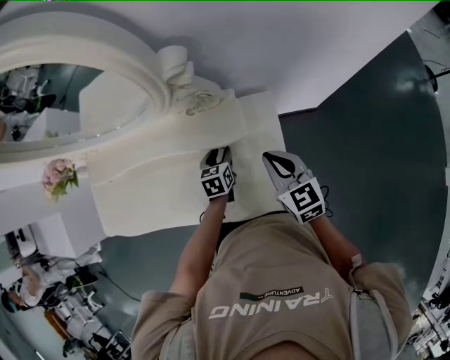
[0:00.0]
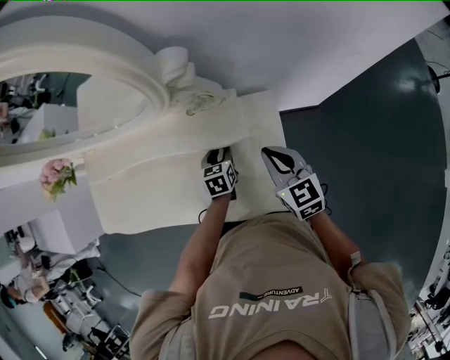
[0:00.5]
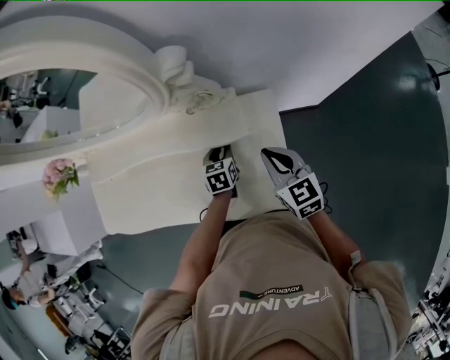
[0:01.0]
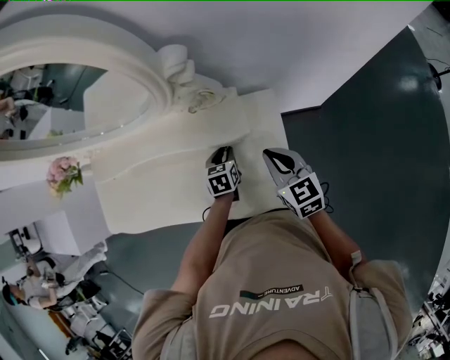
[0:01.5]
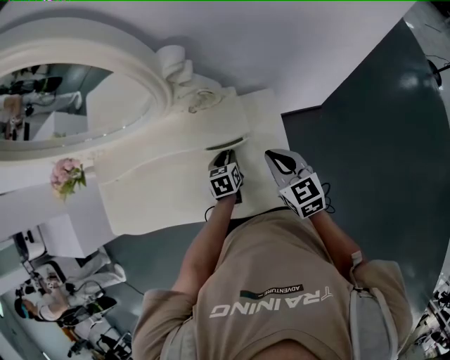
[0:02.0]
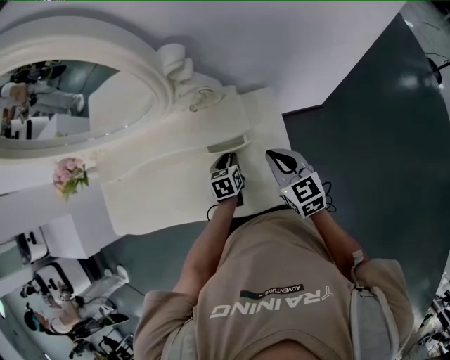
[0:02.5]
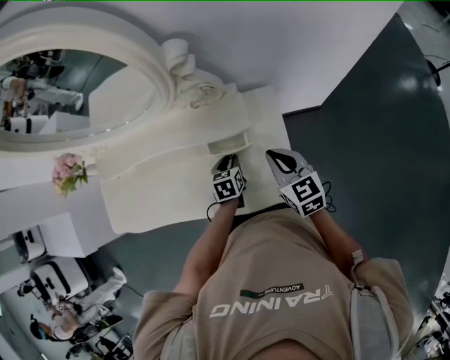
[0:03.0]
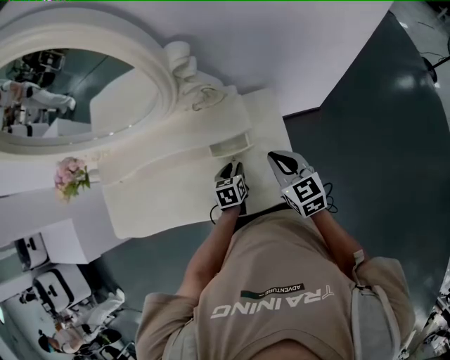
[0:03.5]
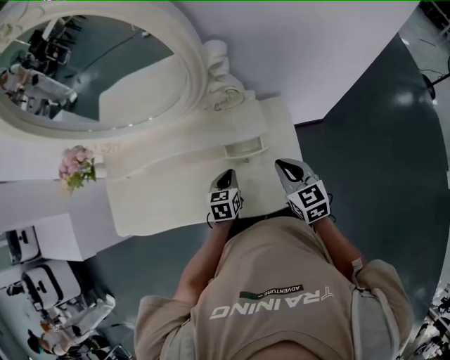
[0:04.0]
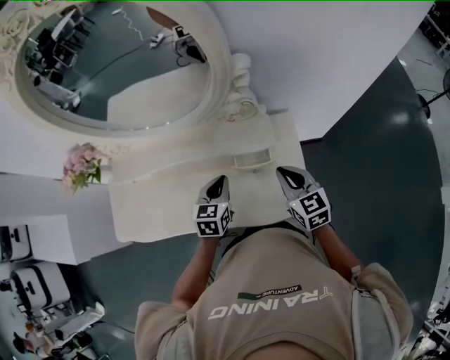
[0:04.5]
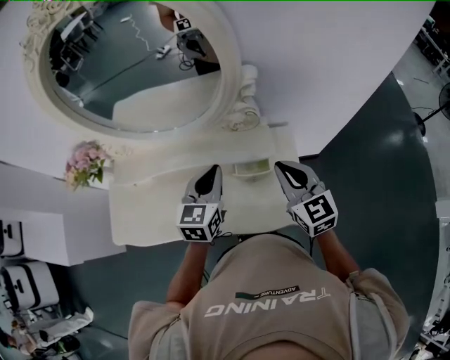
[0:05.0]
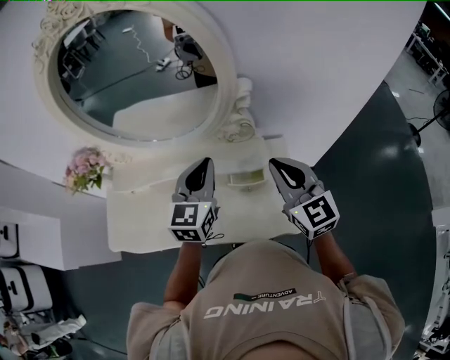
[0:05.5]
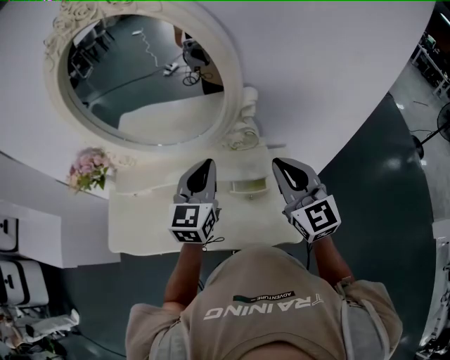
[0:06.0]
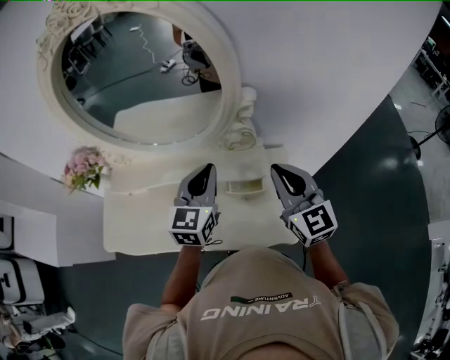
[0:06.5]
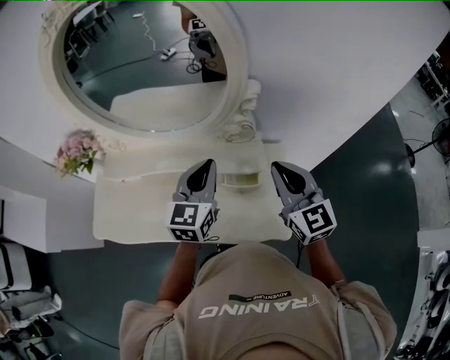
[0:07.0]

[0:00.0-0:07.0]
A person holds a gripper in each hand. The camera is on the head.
0:00.0 to 0:02.0: The grippers make only small movements.
0:02.0 to 0:03.5: The left gripper is displaced backward by approximately 5 cm.
0:03.5 to 0:05.0: The left gripper moves upward, about 30 cm, tips its fingers upward by about 30 degrees, and closes its fingers. The right gripper travels upward and to the left by roughly 15 cm.
0:05.0 to 0:07.0: The right gripper shifts about 5 cm upward.

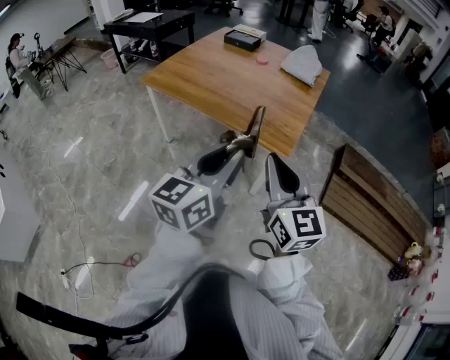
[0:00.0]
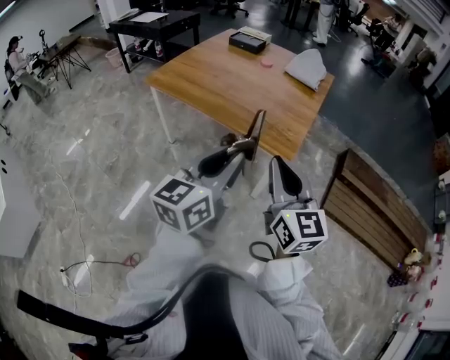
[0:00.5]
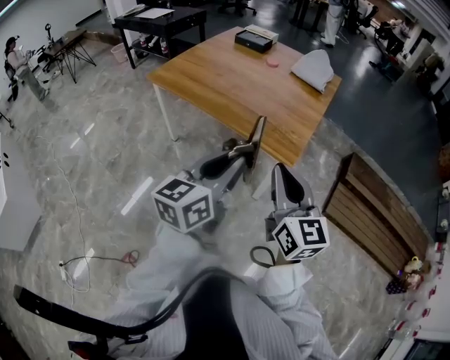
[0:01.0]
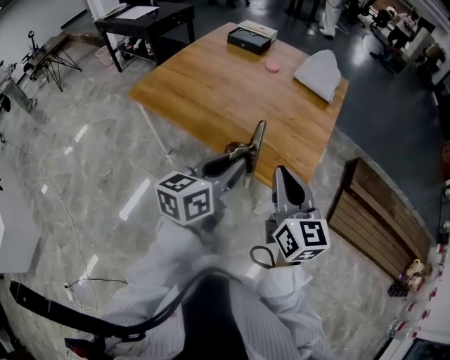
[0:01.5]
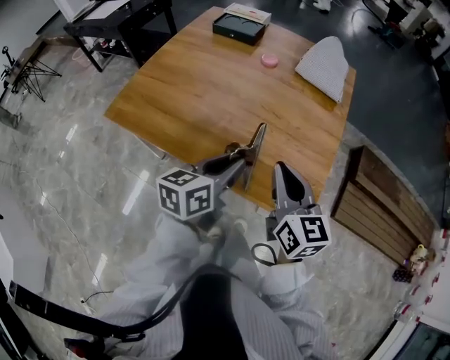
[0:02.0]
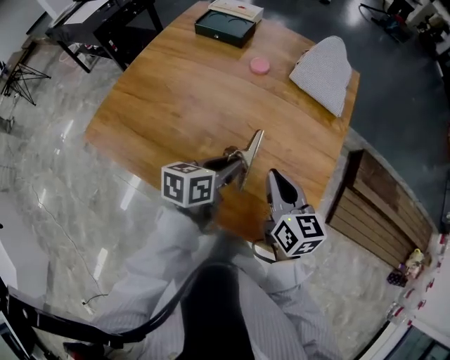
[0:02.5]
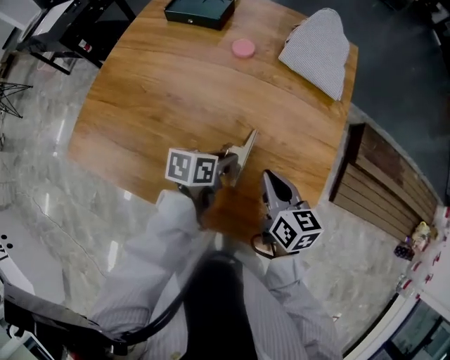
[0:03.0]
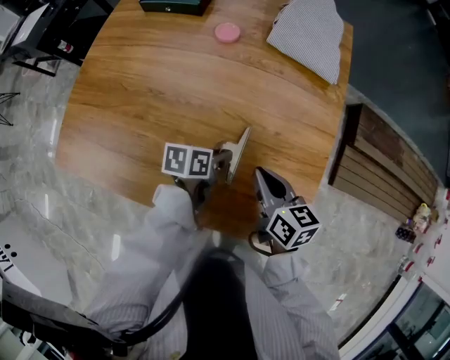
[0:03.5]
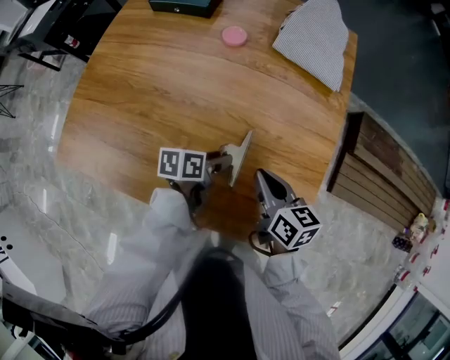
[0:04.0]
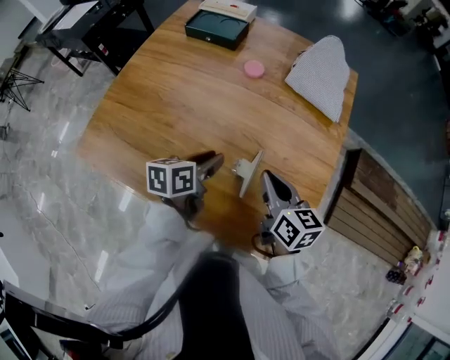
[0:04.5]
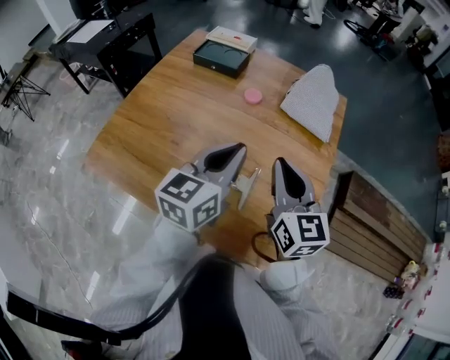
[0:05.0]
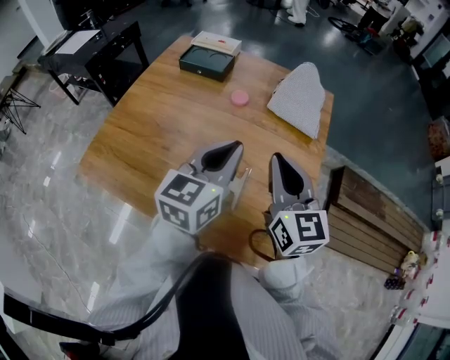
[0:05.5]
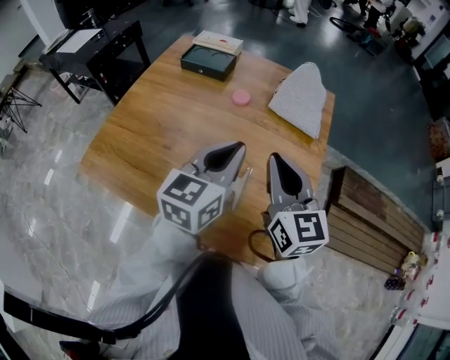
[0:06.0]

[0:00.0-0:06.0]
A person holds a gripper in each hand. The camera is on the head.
0:00.0 to 0:02.0: The left gripper travels forward and downward by some 40 cm, and rotates approximately 30 degrees. Meanwhile the right gripper shifts about 35 cm forward.
0:02.0 to 0:04.0: Both grippers travel together downward and forward, some 25 cm. The right gripper turns by roughly 30 degrees. The left gripper swivels some 40 degrees, and opens up.
0:04.0 to 0:06.0: The grippers both shift upward by roughly 30 cm. The left gripper points its fingers approximately 30 degrees further upward, and closes up. Meanwhile the right gripper rotates roughly 40 degrees.

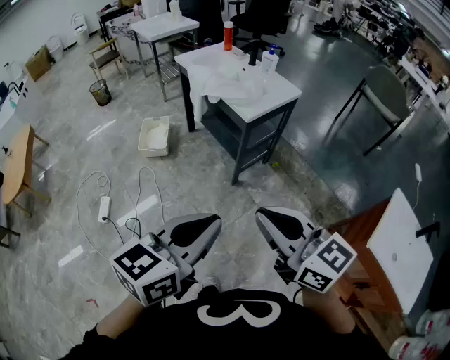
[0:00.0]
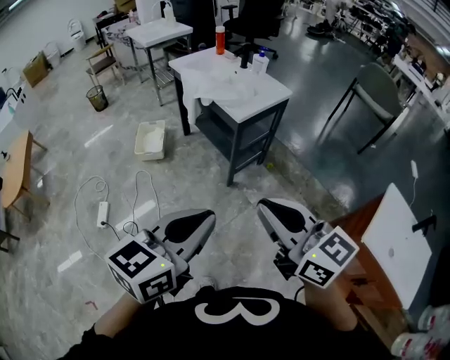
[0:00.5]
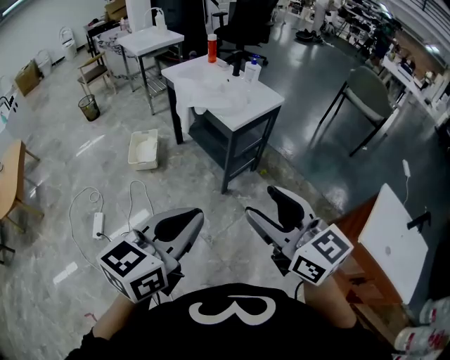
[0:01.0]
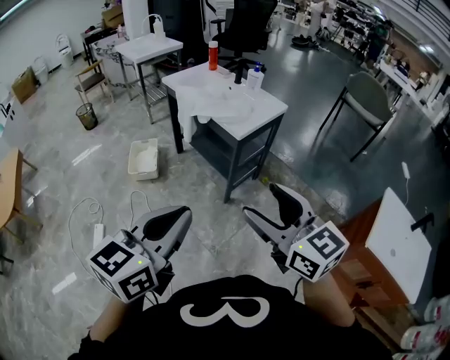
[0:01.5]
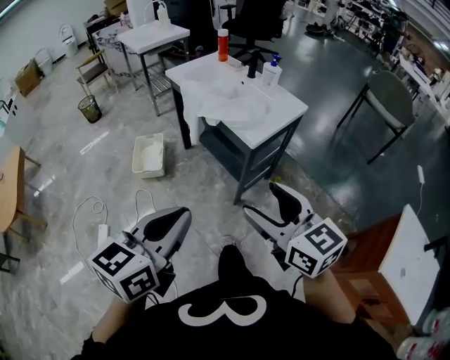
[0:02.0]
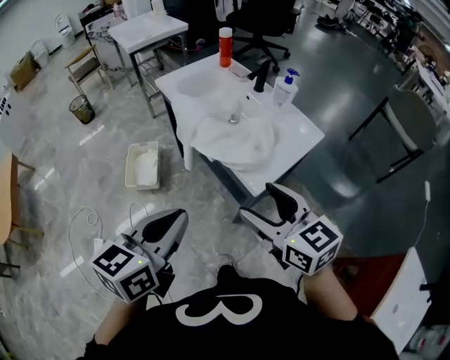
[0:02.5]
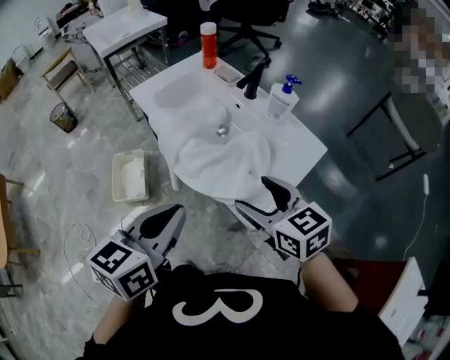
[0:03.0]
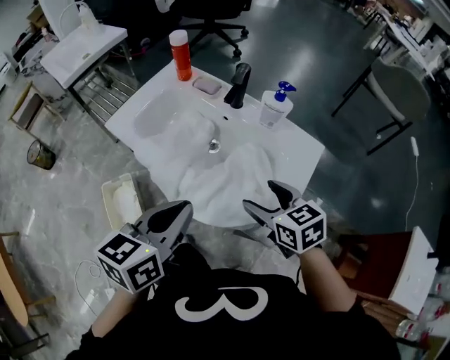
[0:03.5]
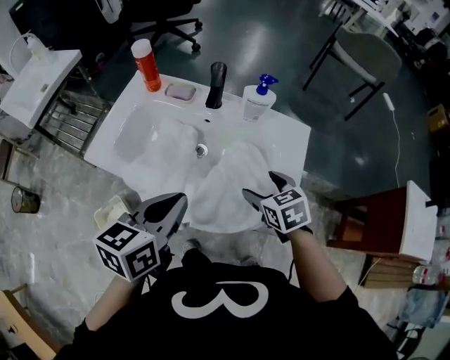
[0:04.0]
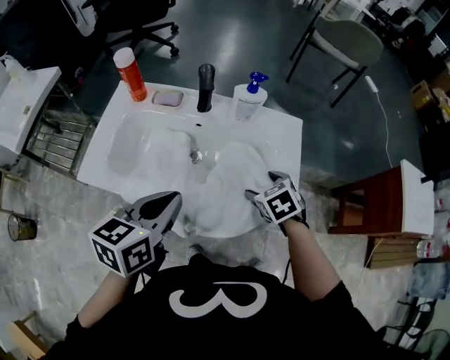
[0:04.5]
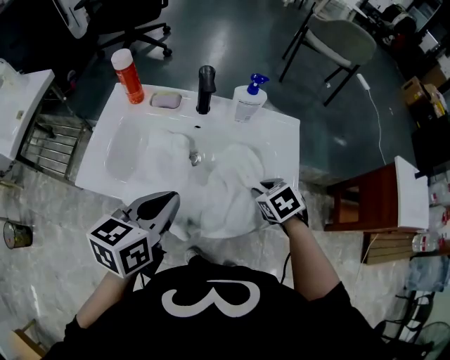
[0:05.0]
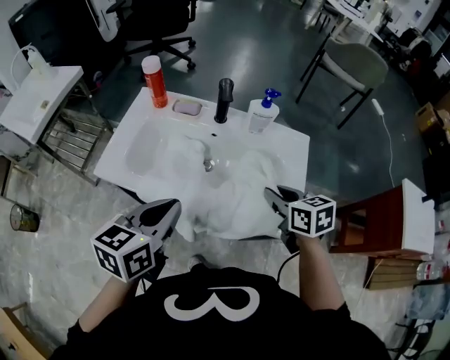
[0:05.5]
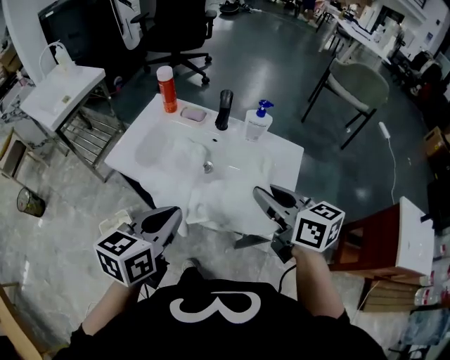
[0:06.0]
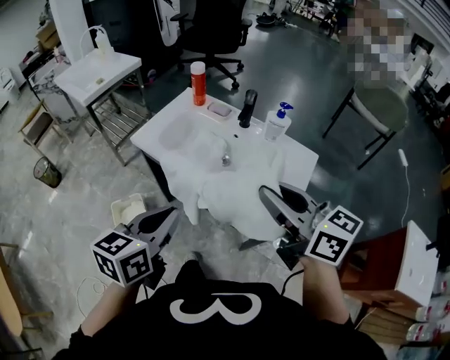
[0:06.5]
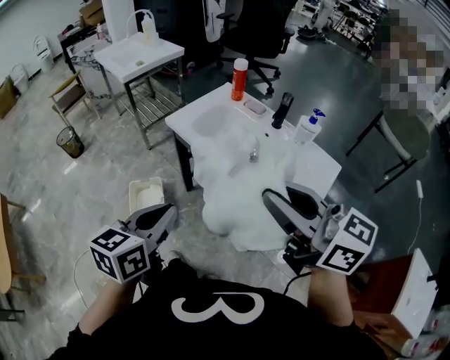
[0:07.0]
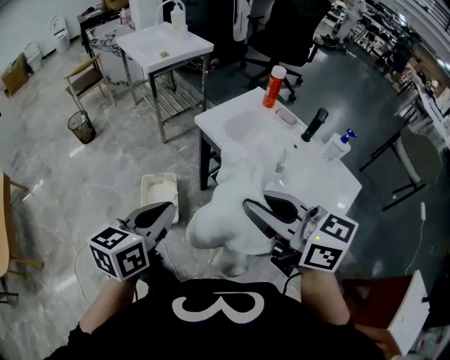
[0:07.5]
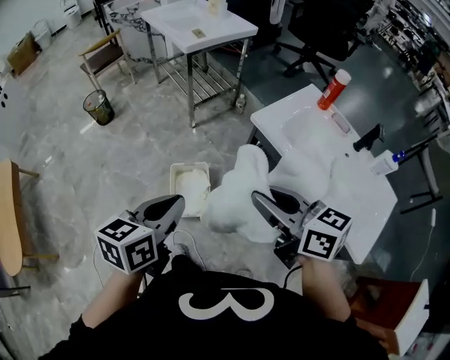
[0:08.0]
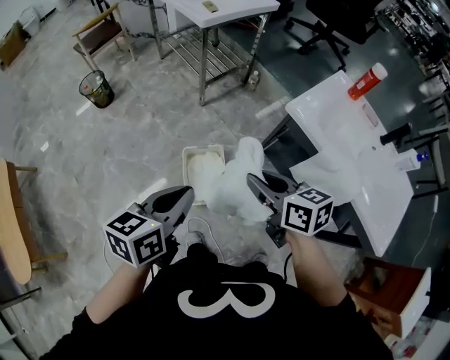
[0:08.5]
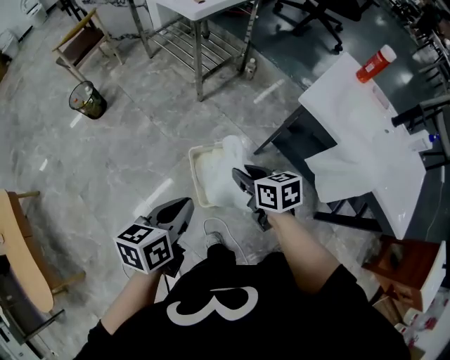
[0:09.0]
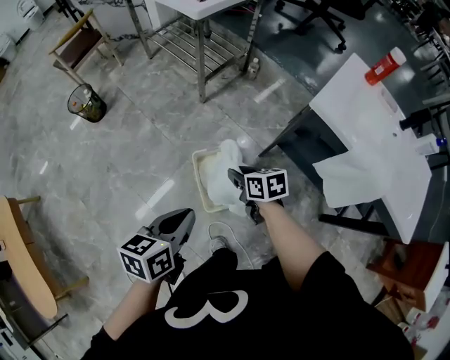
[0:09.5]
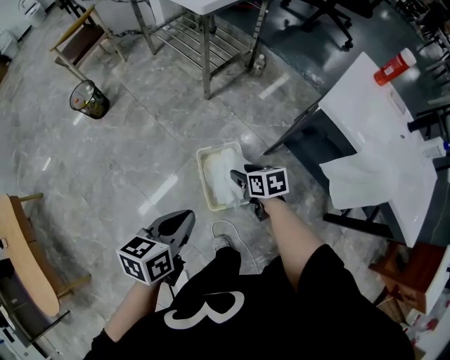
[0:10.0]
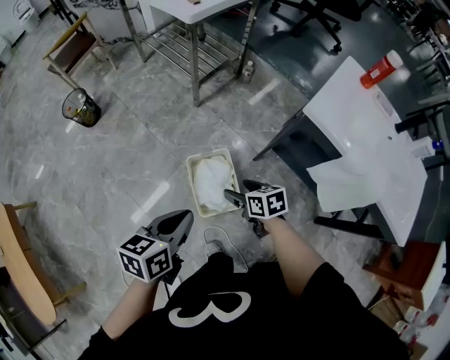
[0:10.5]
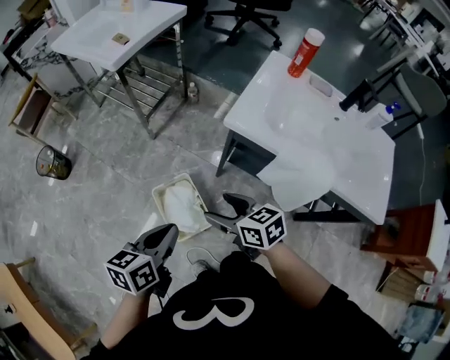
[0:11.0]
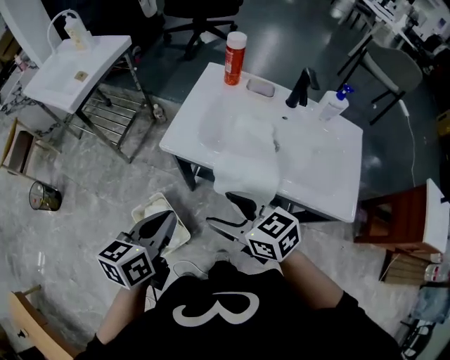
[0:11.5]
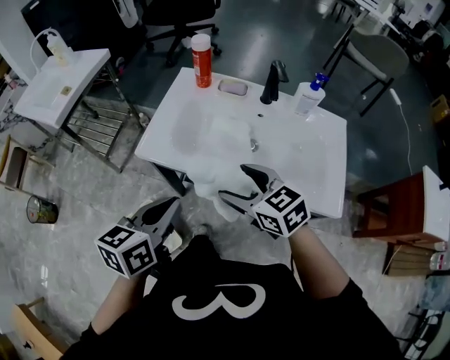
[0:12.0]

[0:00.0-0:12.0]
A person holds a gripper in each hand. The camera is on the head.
0:00.0 to 0:02.0: The left gripper heads forward and to the left, covering approximately 20 cm. The right gripper moves forward, some 20 cm, and opens its fingers.
0:02.0 to 0:04.0: Both grippers are carried roughly 60 cm. The left gripper swivels some 30 degrees; the right gripper tips its fingers downward by about 40 degrees.
0:04.0 to 0:06.0: The left gripper goes some 10 cm backward; the right gripper is displaced upward by about 20 cm, angles its fingers upward, by about 30 degrees, and closes its fingers.
0:06.0 to 0:08.0: The pair of grippers is taken about 40 cm. The left gripper changes its angle by about 30 degrees, while the right gripper swivels some 40 degrees.
0:08.0 to 0:10.0: The left gripper heads to the left, downward and forward, covering approximately 30 cm. Meanwhile the right gripper travels downward, to the left and forward by roughly 50 cm, and angles its fingers downward, by about 30 degrees.
0:10.0 to 0:12.0: Both grippers are carried to the right, roughly 40 cm. The right gripper travels upward by roughly 30 cm, and swivels approximately 30 degrees. Meanwhile the left gripper changes its angle by some 30 degrees.

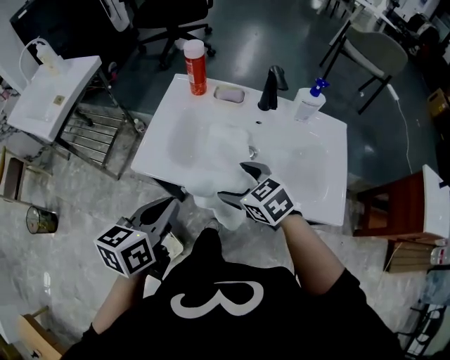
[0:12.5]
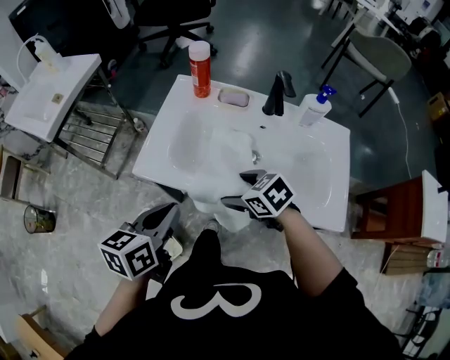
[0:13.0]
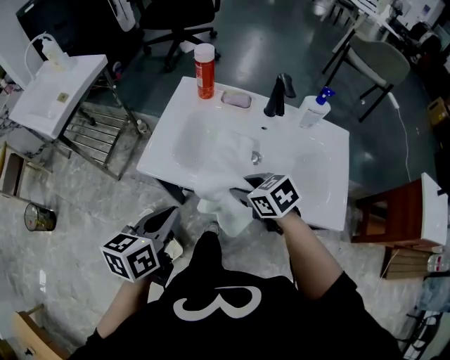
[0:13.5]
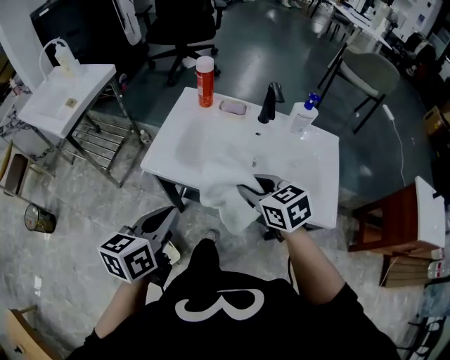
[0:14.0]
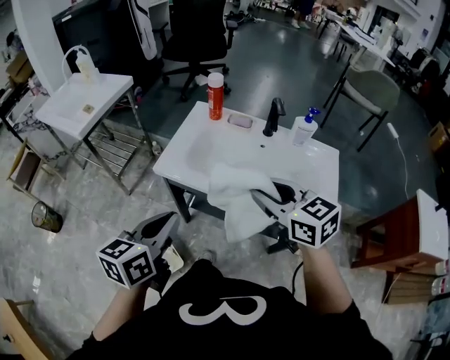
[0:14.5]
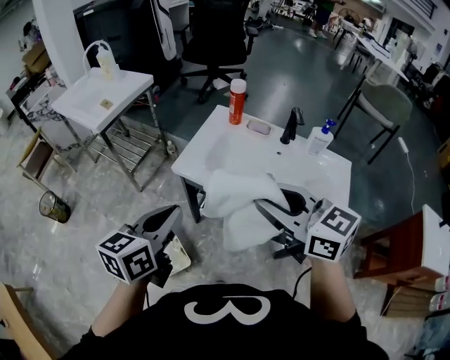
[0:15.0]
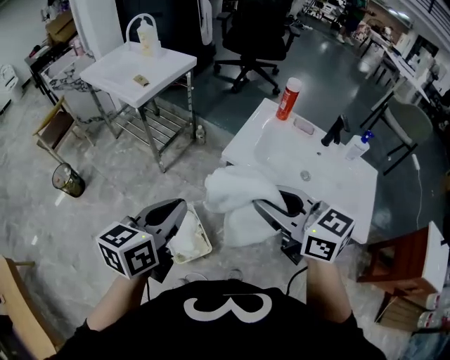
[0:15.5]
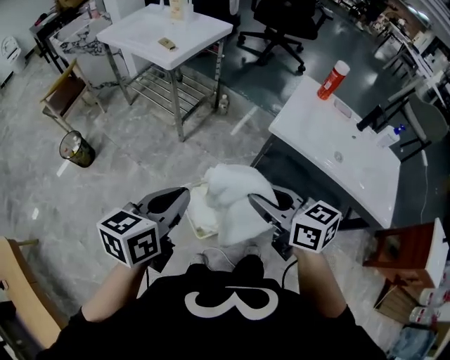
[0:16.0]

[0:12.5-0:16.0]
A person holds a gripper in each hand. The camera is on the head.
0:12.5 to 0:14.5: The right gripper goes roughly 20 cm upward and backward, rotates about 20 degrees, and closes. Meanwhile the left gripper heads backward and upward, covering approximately 10 cm.
0:14.5 to 0:16.0: The grippers both shift to the left by some 40 cm. The right gripper swivels roughly 20 degrees.
